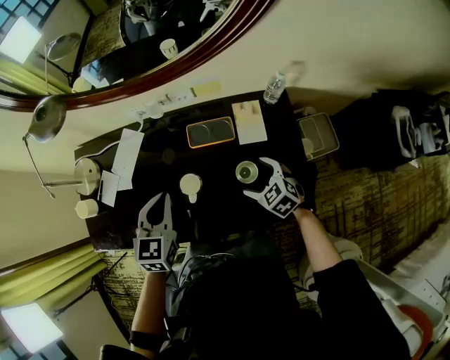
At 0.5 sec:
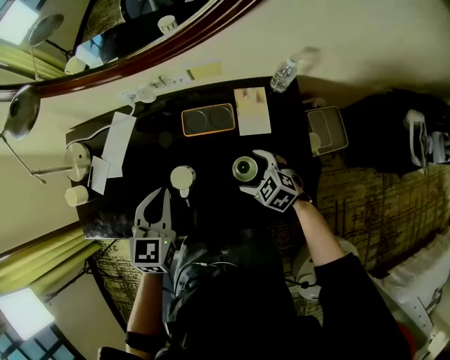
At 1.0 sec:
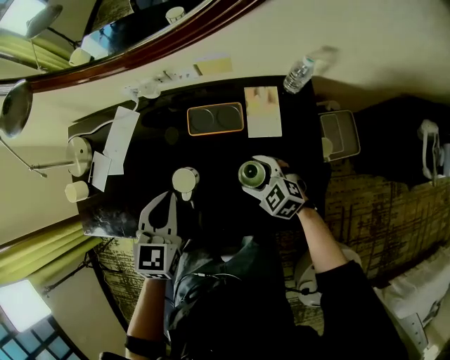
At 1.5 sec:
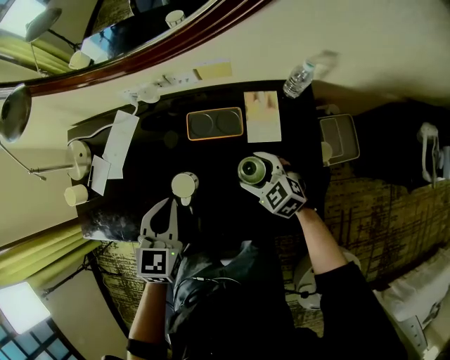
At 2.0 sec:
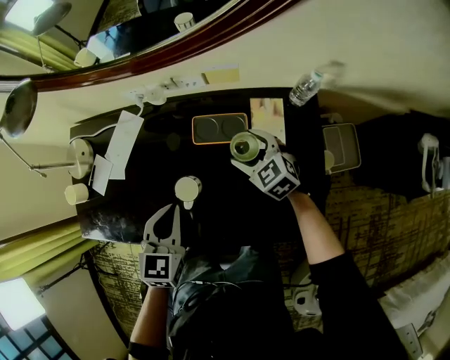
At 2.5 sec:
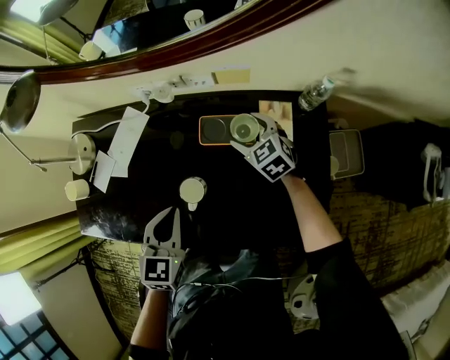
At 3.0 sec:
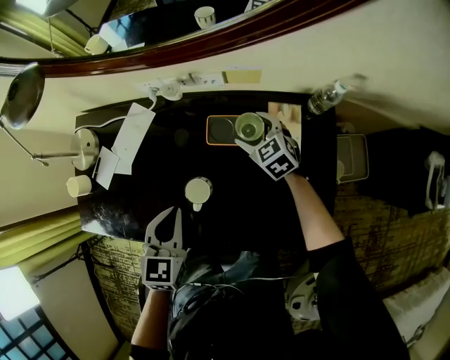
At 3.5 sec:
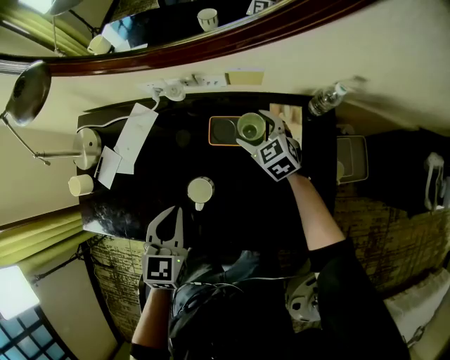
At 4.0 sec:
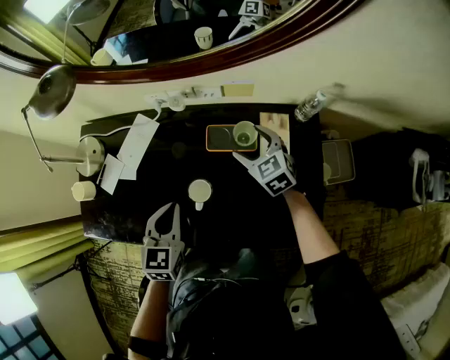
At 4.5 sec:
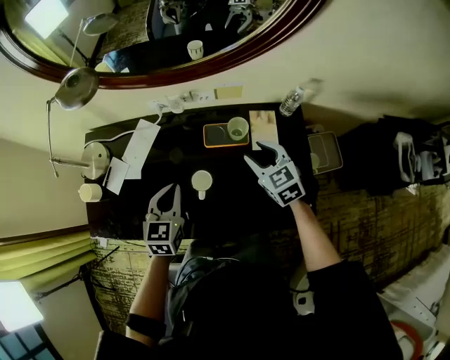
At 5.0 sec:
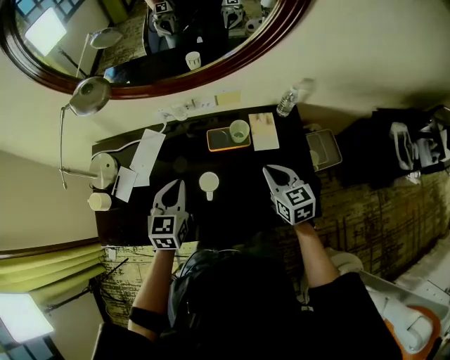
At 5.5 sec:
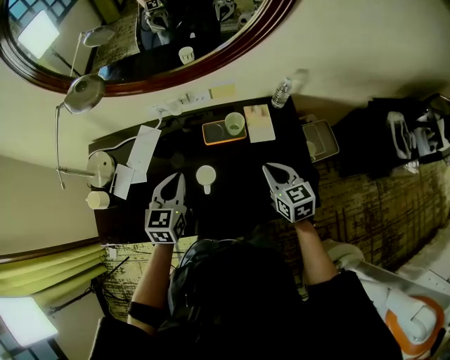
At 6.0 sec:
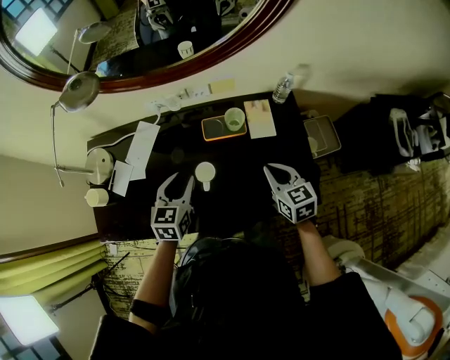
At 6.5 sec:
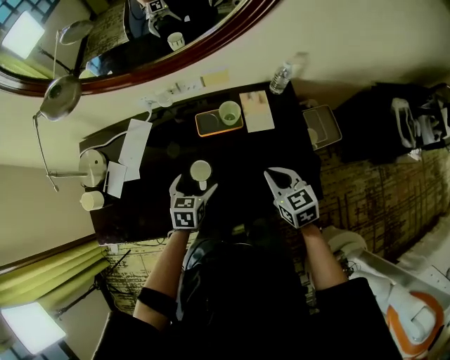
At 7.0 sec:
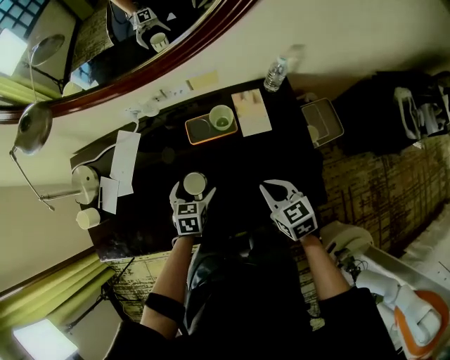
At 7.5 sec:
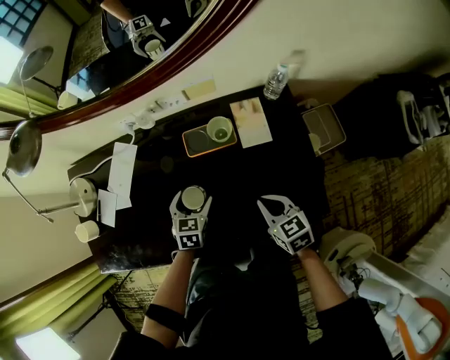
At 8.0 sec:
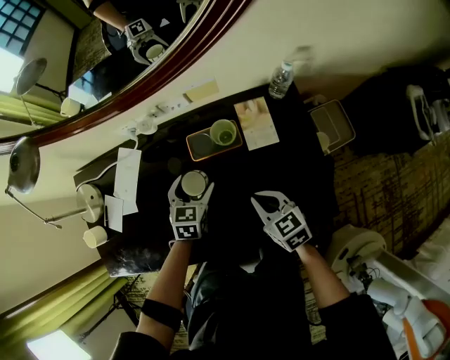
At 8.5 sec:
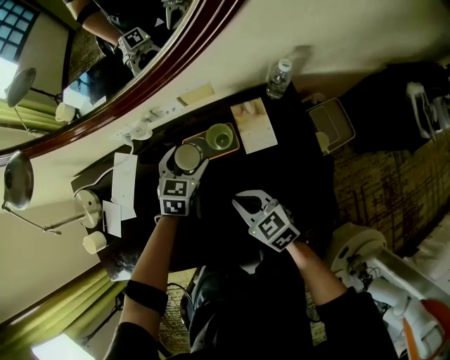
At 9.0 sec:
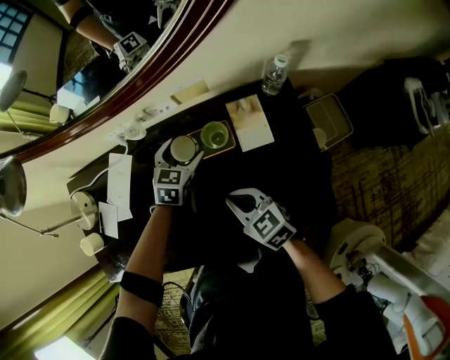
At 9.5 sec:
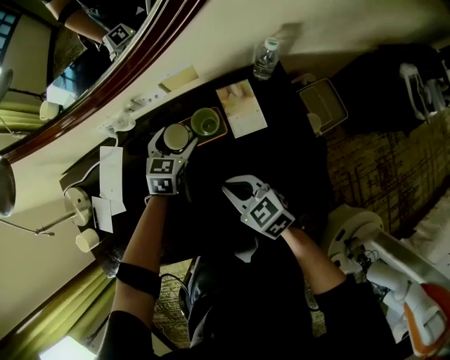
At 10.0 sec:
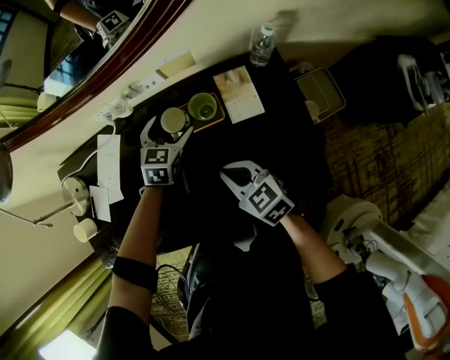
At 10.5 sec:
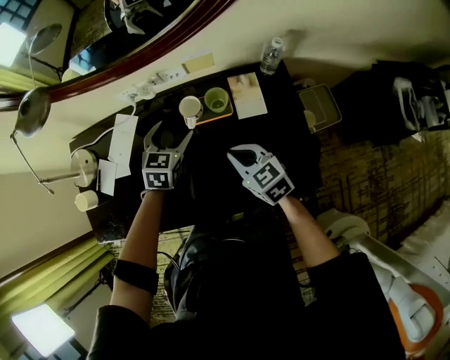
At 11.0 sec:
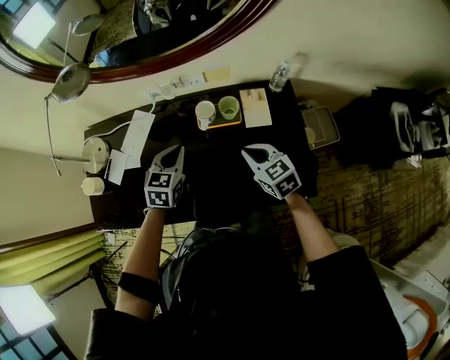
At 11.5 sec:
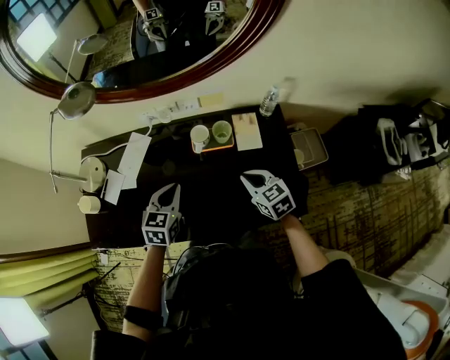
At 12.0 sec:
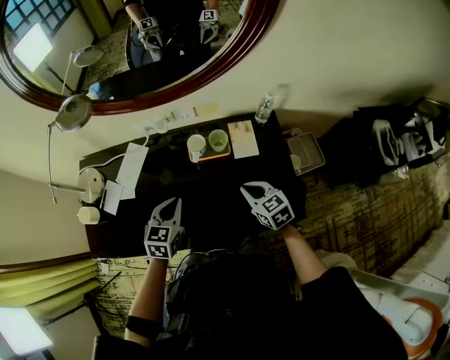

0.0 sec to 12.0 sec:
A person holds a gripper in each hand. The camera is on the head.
0.0 sec to 2.0 sec: The left gripper is displaced downward by roughly 5 cm; the right gripper travels forward by approximately 15 cm.
2.0 sec to 4.0 sec: The left gripper goes approximately 5 cm to the left. Meanwhile the right gripper moves roughly 5 cm.
4.0 sec to 6.0 sec: The right gripper shifts some 20 cm backward, turns by about 30 degrees, and closes its fingers.
6.0 sec to 8.0 sec: The right gripper moves downward, approximately 10 cm. The left gripper goes roughly 20 cm downward, forward and to the right, and opens up.
8.0 sec to 10.0 sec: The right gripper shifts by roughly 5 cm; the left gripper is displaced forward by approximately 10 cm.
10.0 sec to 12.0 sec: The left gripper is displaced backward, upward and to the left by about 25 cm, and closes up; the right gripper is displaced to the right and upward by approximately 10 cm.

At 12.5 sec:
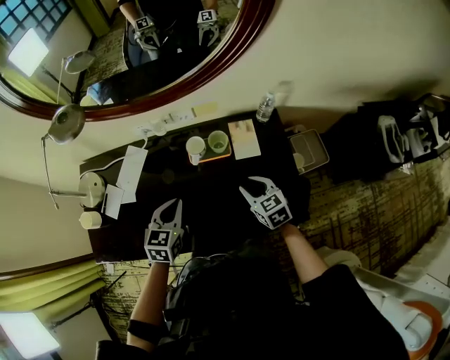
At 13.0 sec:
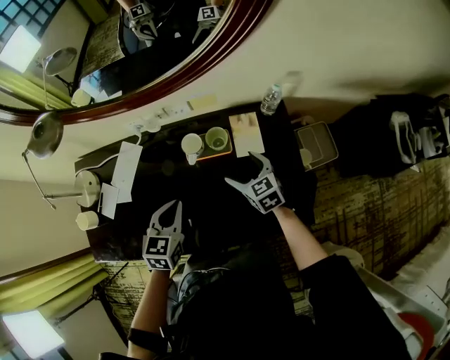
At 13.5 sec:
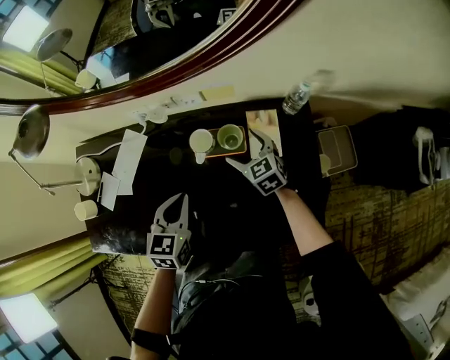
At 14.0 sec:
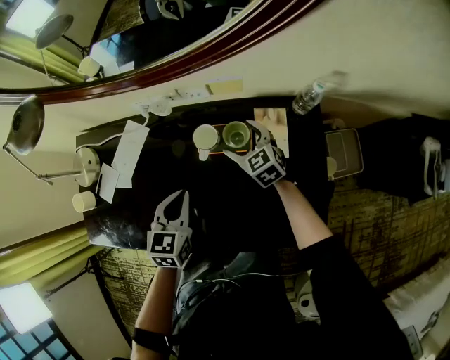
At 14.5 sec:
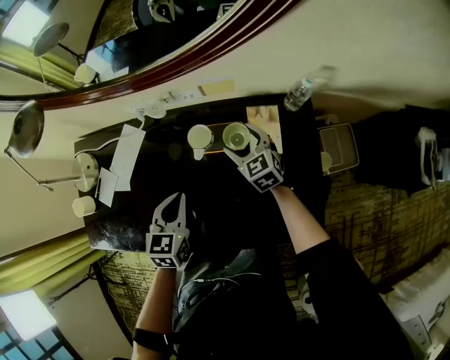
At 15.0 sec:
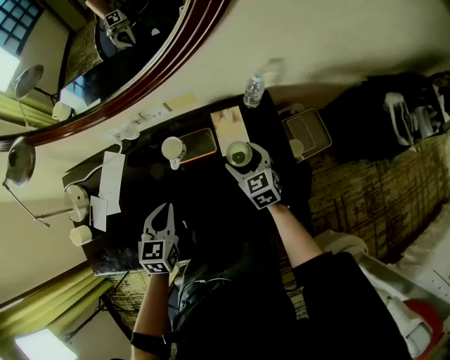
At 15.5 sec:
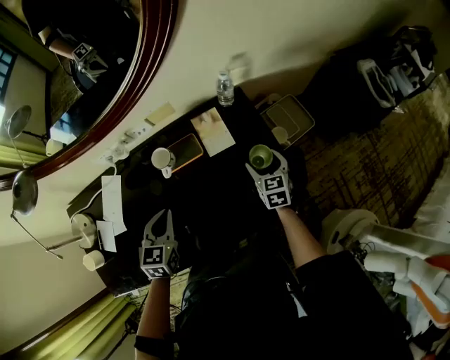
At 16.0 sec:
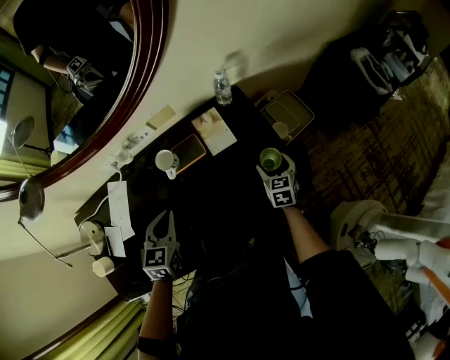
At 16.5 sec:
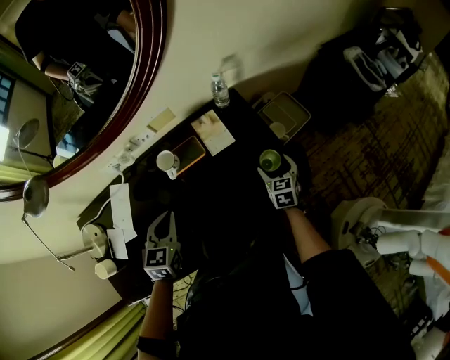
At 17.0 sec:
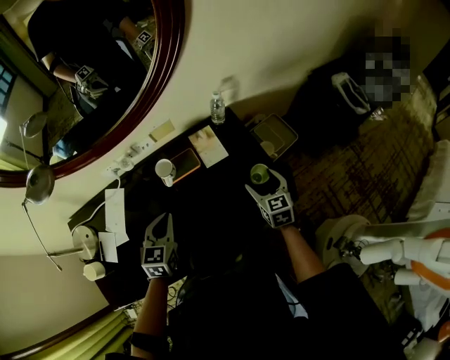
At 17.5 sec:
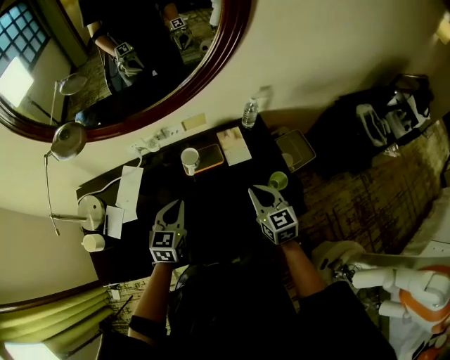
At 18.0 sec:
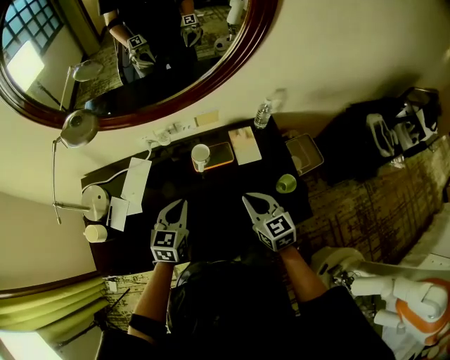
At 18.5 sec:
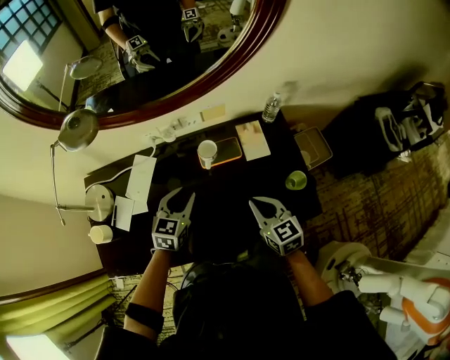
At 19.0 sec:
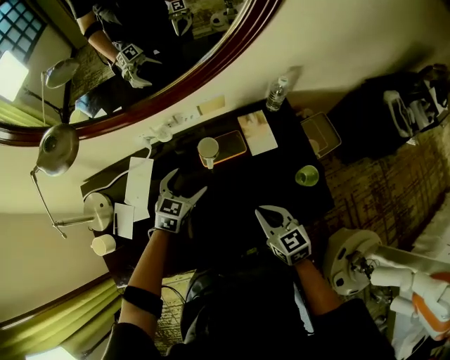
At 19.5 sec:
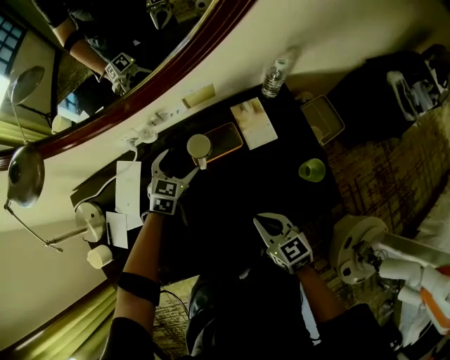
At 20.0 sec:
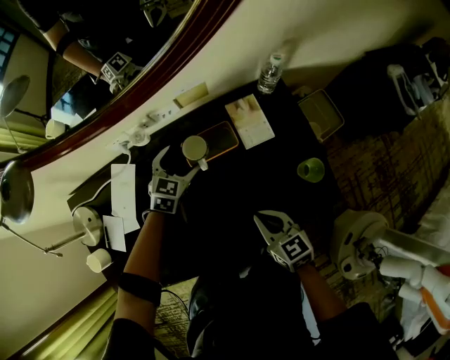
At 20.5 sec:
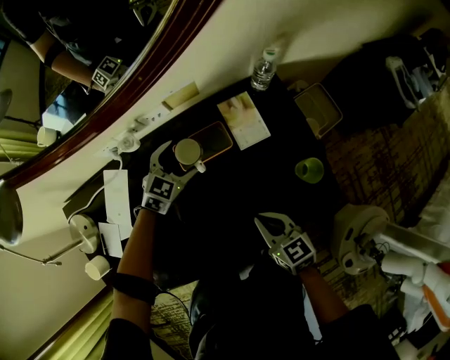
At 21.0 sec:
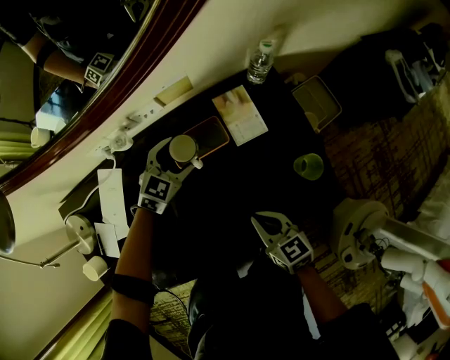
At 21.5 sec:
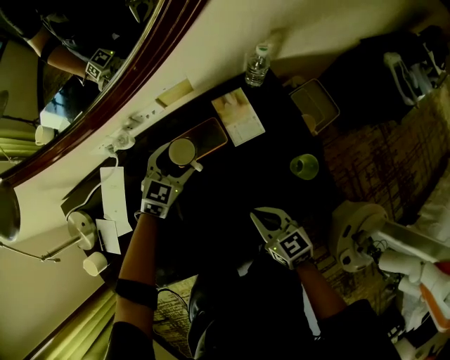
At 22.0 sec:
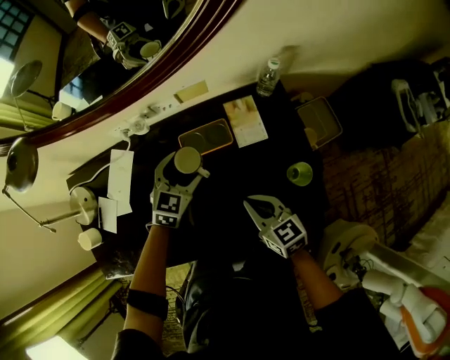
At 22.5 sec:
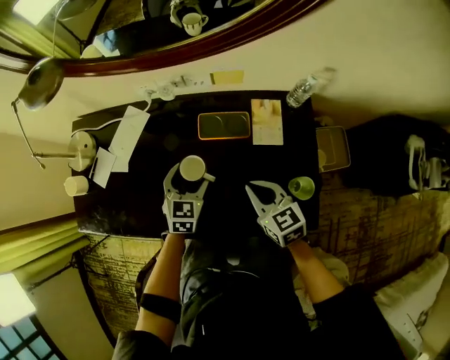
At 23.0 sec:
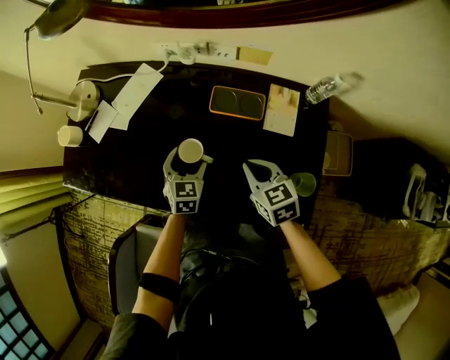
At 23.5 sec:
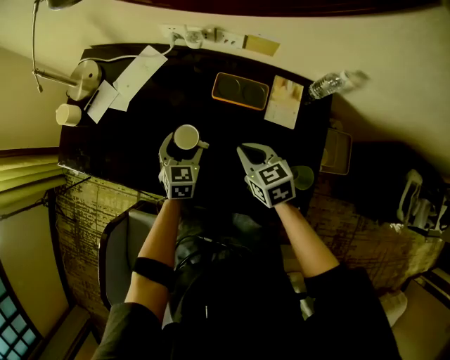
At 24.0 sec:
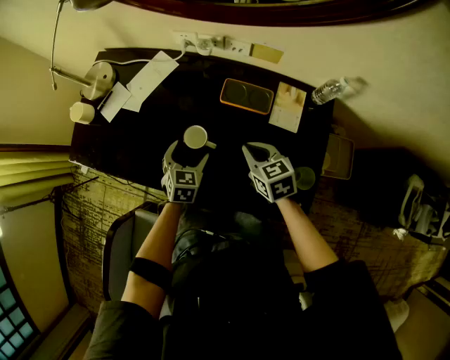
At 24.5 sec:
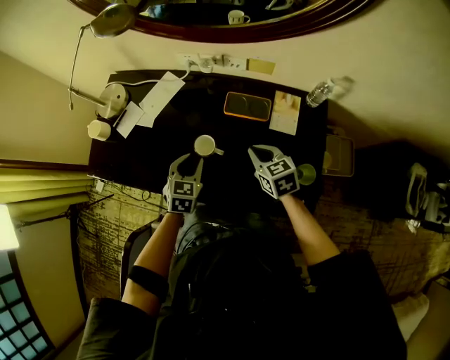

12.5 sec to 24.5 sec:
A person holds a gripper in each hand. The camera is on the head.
12.5 sec to 14.5 sec: The left gripper travels downward by some 5 cm. The right gripper shifts about 20 cm forward, and opens.
14.5 sec to 16.5 sec: The left gripper shifts approximately 5 cm upward, and changes its angle by about 20 degrees; the right gripper ends up about 30 cm from where it was, and swivels roughly 50 degrees.
16.5 sec to 18.5 sec: The left gripper goes approximately 5 cm to the left. The right gripper shifts approximately 25 cm to the left and upward, turns by approximately 40 degrees, and closes its fingers.
18.5 sec to 20.5 sec: The left gripper heads forward, downward and to the right, covering approximately 20 cm, changes its angle by roughly 30 degrees, and opens up, while the right gripper travels downward by approximately 10 cm.
20.5 sec to 22.5 sec: The right gripper changes place by approximately 5 cm, and swivels some 20 degrees. Meanwhile the left gripper changes place by approximately 15 cm, and turns by approximately 40 degrees.
22.5 sec to 24.5 sec: The left gripper moves to the left and backward, roughly 10 cm, goes downward and returns, some 5 cm each way, and closes up.

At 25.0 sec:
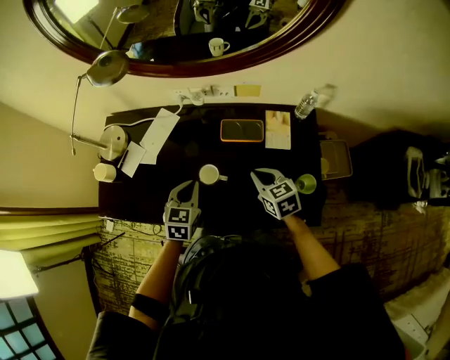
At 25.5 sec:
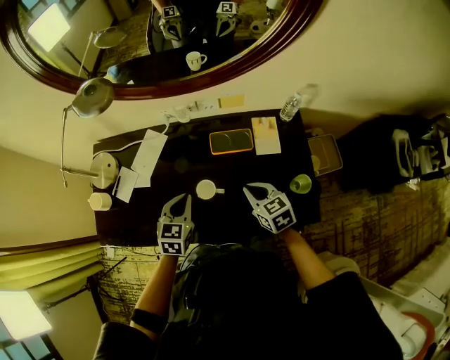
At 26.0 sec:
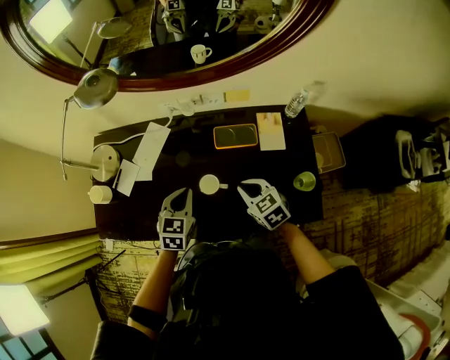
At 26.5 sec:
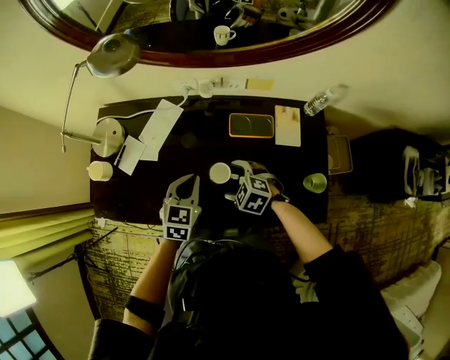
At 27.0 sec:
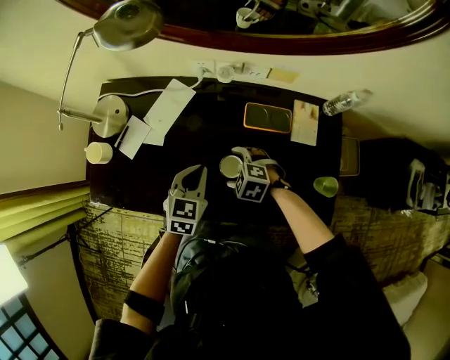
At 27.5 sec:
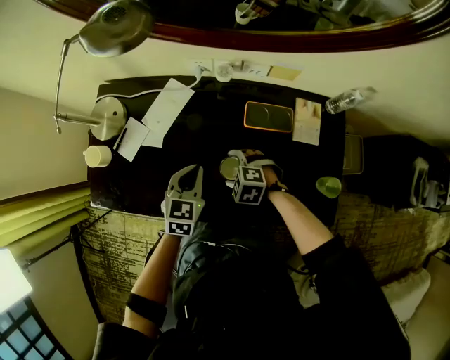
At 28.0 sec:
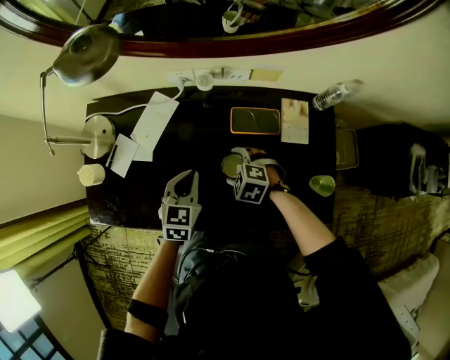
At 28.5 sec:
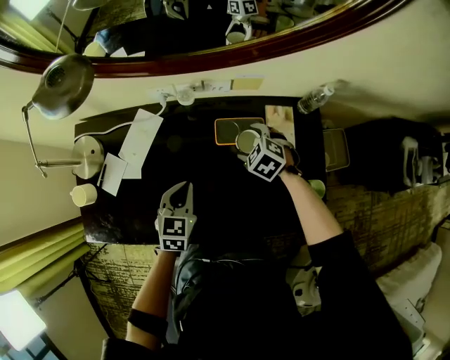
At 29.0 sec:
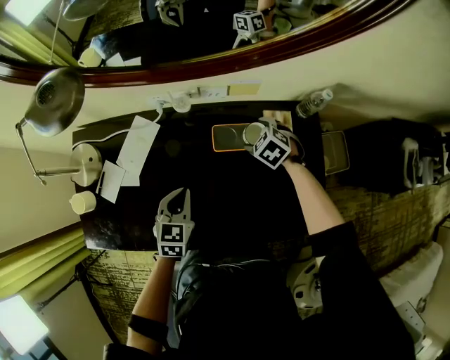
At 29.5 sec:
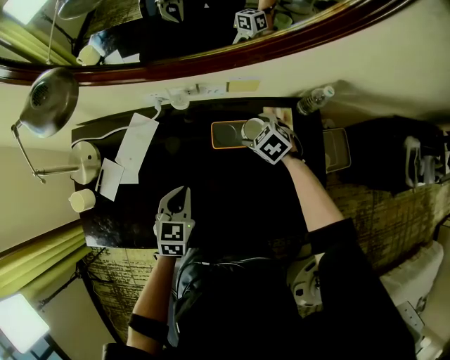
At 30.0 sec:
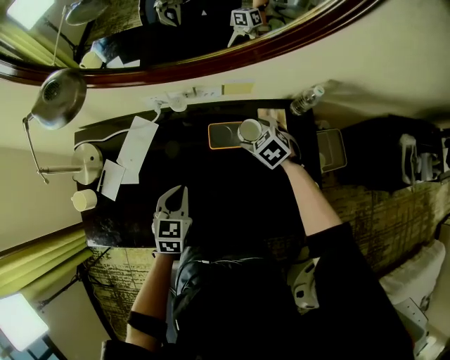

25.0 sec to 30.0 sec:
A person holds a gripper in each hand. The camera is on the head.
25.0 sec to 27.5 sec: The left gripper travels forward and to the left by roughly 10 cm, while the right gripper shifts some 20 cm to the left and downward, rotates around the line of its fingers by roughly 50 degrees, counterclockwise from behind, and opens up.
27.5 sec to 30.0 sec: The right gripper travels to the right and forward by roughly 25 cm, and rotates approximately 40 degrees, while the left gripper goes about 5 cm to the right.
